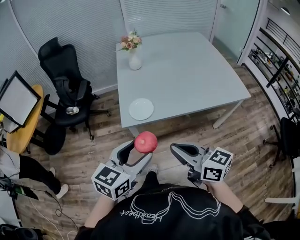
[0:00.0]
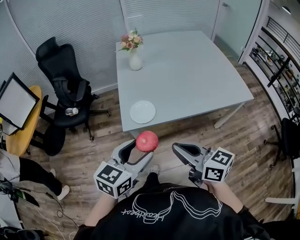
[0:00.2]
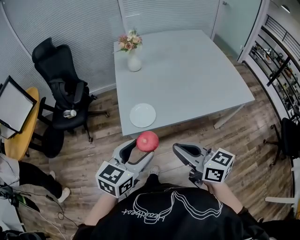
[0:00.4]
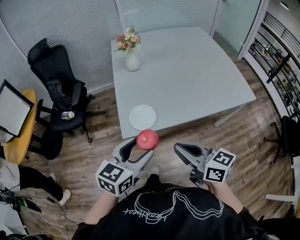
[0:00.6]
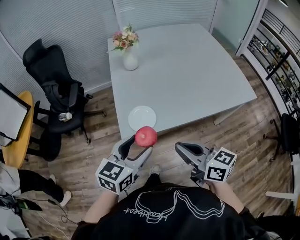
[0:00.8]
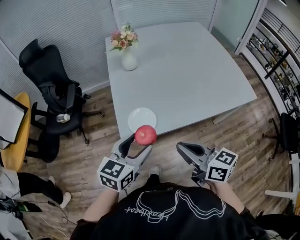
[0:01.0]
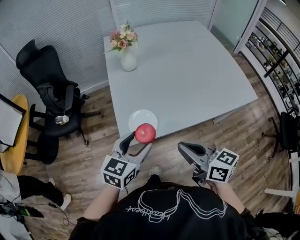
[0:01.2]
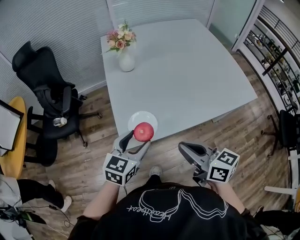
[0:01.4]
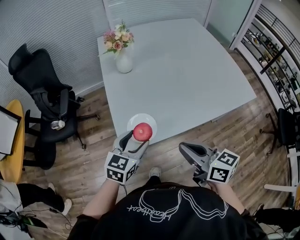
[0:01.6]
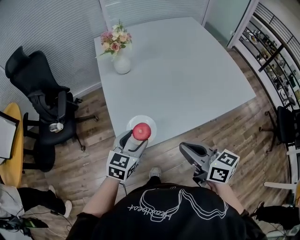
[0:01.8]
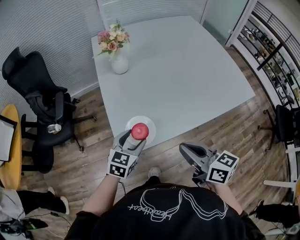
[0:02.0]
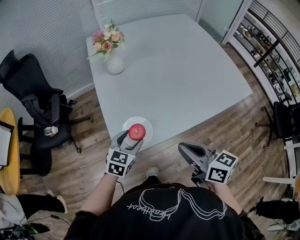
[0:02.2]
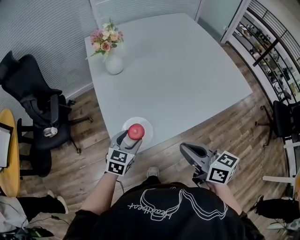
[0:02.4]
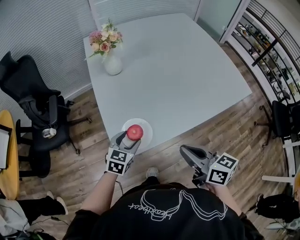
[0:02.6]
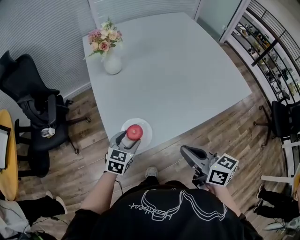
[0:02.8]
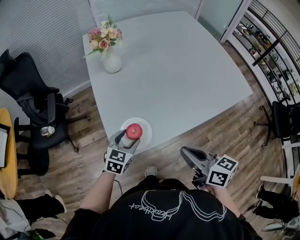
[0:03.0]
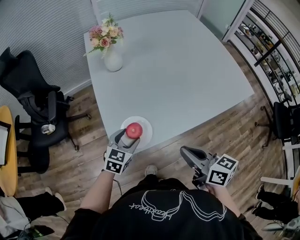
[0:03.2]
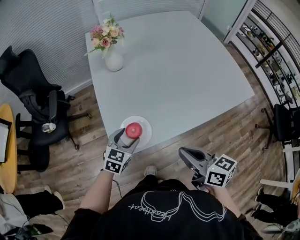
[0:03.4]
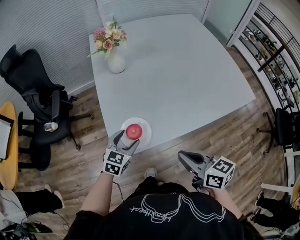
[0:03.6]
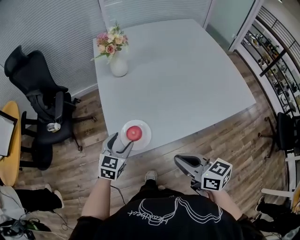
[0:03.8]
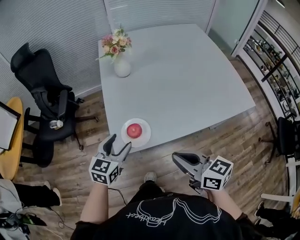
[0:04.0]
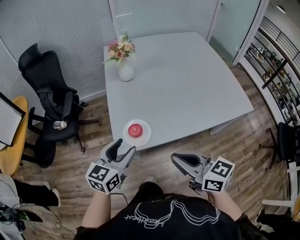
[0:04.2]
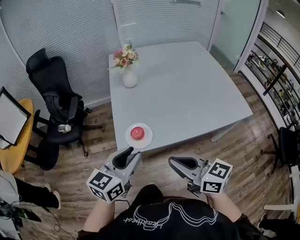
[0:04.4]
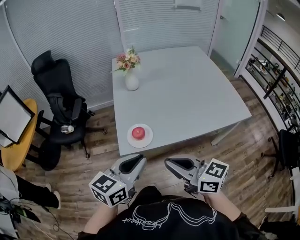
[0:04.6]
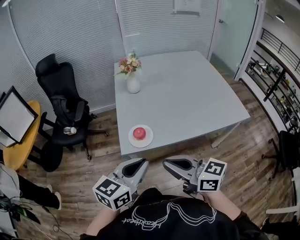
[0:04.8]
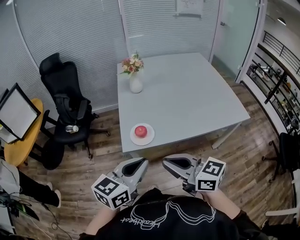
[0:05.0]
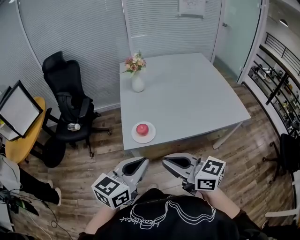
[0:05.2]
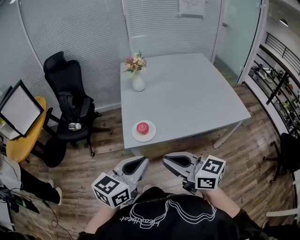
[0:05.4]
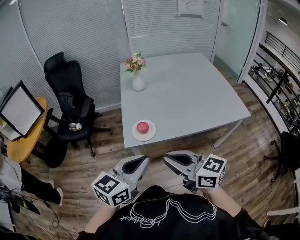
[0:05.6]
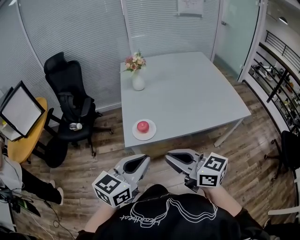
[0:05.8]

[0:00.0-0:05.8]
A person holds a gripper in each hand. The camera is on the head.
0:00.0 to 0:01.4: The left gripper goes about 25 cm forward and downward; the right gripper moves forward, roughly 15 cm.
0:01.4 to 0:02.8: The right gripper moves approximately 5 cm; the left gripper is displaced downward and forward by about 15 cm.
0:02.8 to 0:04.4: The right gripper heads upward and backward, covering about 10 cm, and changes its angle by about 30 degrees. Meanwhile the left gripper goes about 25 cm upward and backward, changes its angle by about 30 degrees, and closes up.
0:04.4 to 0:05.8: The right gripper is displaced backward by some 10 cm. The left gripper heads backward and upward, covering some 15 cm, and closes.

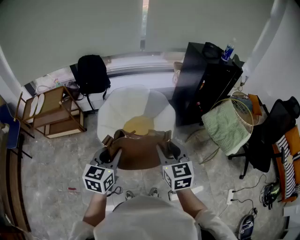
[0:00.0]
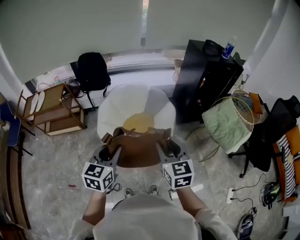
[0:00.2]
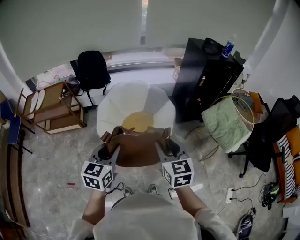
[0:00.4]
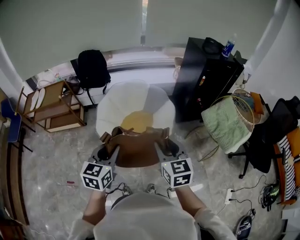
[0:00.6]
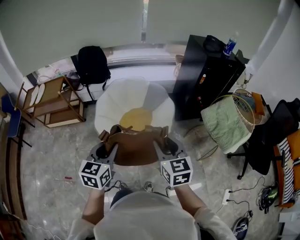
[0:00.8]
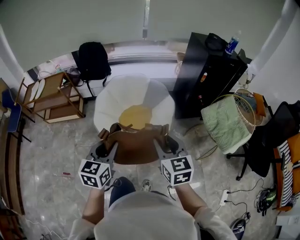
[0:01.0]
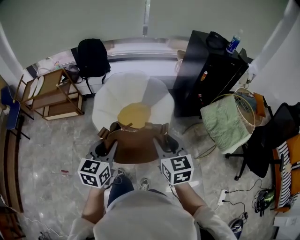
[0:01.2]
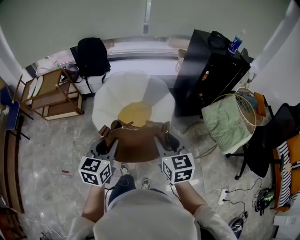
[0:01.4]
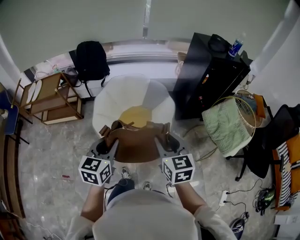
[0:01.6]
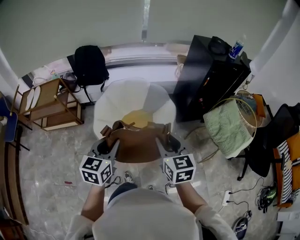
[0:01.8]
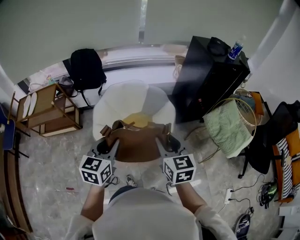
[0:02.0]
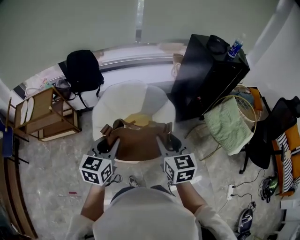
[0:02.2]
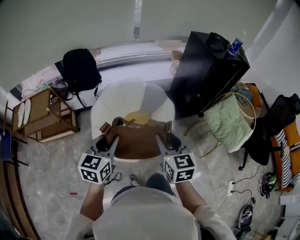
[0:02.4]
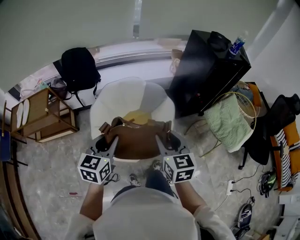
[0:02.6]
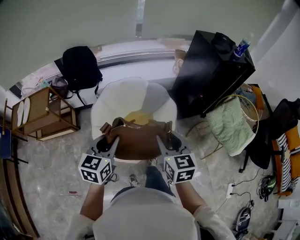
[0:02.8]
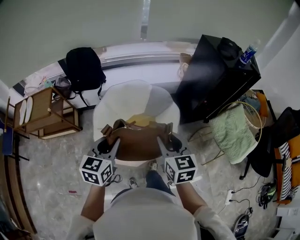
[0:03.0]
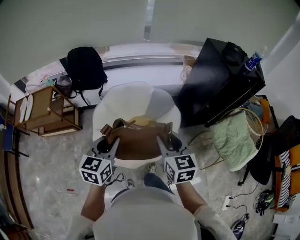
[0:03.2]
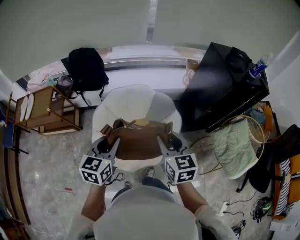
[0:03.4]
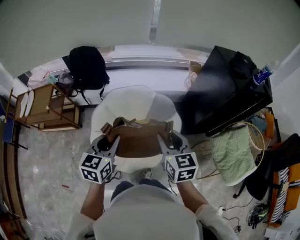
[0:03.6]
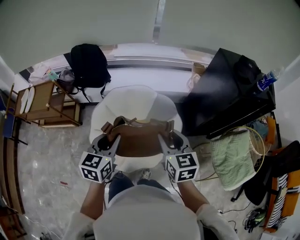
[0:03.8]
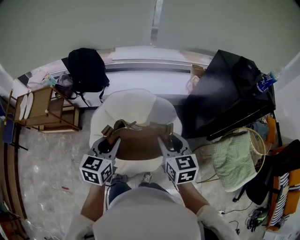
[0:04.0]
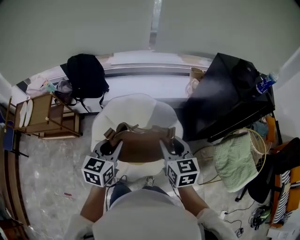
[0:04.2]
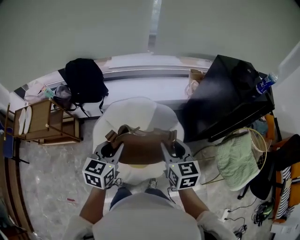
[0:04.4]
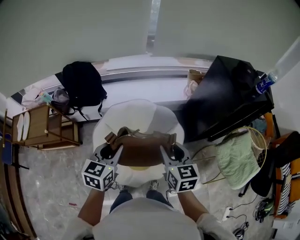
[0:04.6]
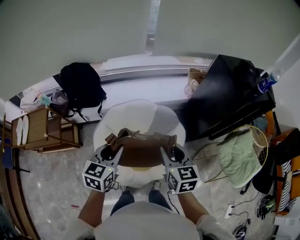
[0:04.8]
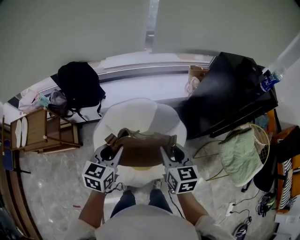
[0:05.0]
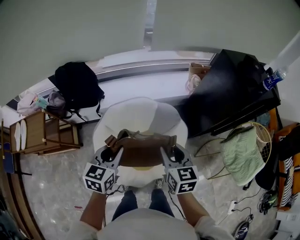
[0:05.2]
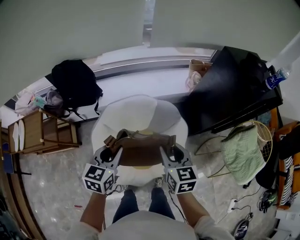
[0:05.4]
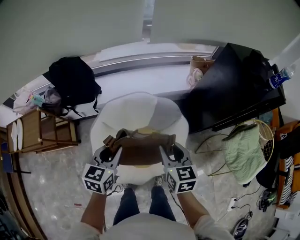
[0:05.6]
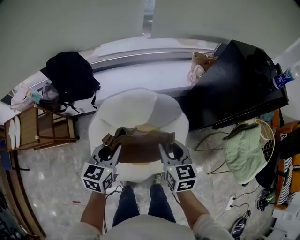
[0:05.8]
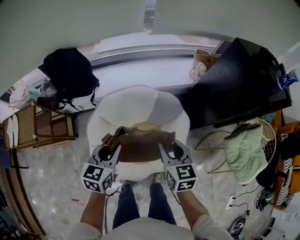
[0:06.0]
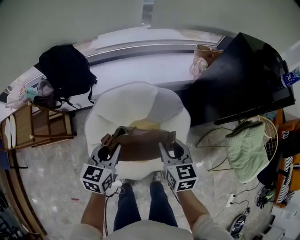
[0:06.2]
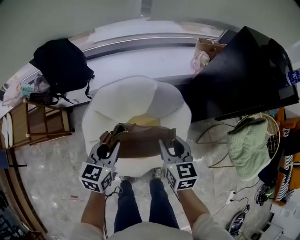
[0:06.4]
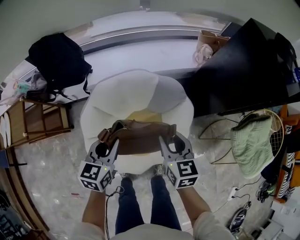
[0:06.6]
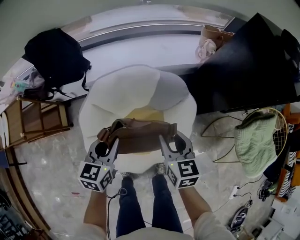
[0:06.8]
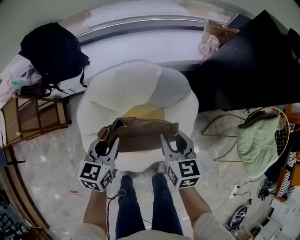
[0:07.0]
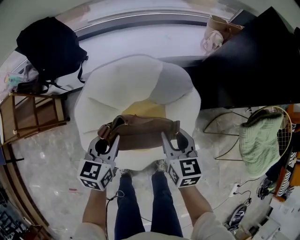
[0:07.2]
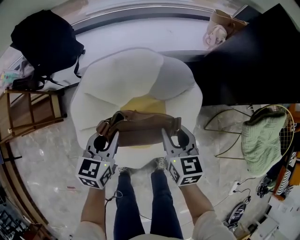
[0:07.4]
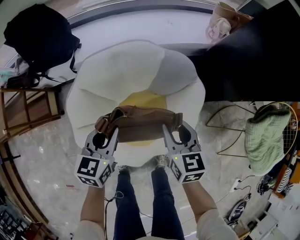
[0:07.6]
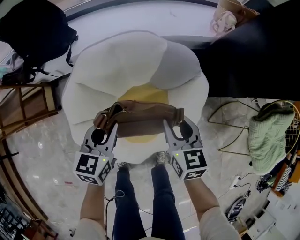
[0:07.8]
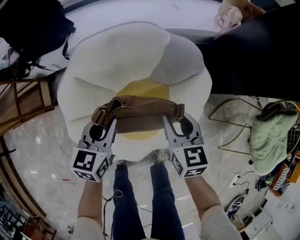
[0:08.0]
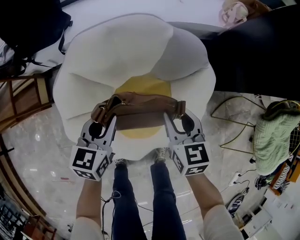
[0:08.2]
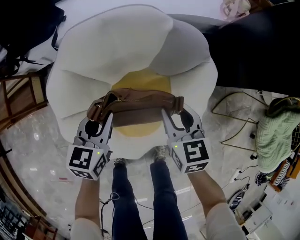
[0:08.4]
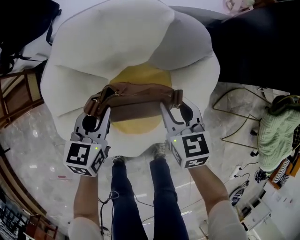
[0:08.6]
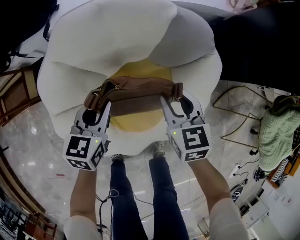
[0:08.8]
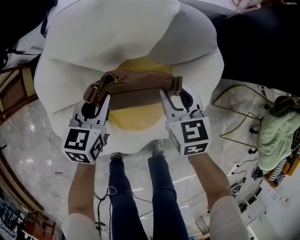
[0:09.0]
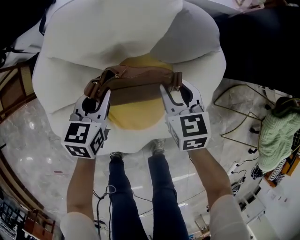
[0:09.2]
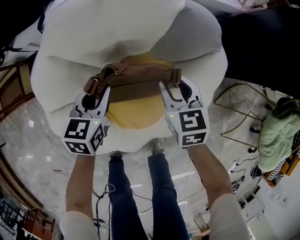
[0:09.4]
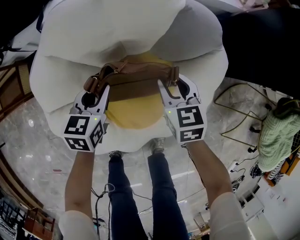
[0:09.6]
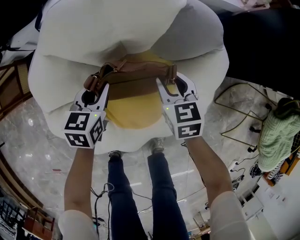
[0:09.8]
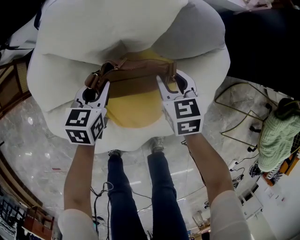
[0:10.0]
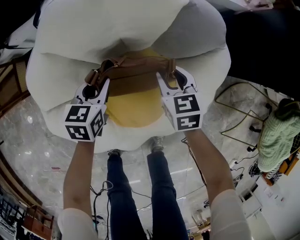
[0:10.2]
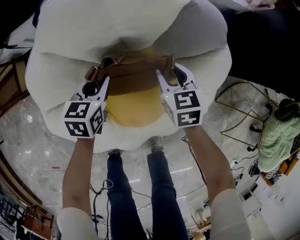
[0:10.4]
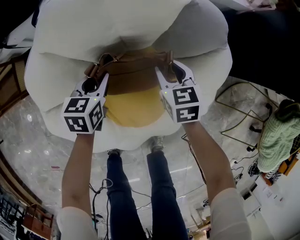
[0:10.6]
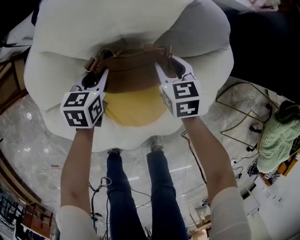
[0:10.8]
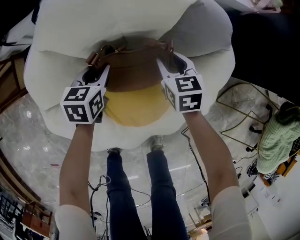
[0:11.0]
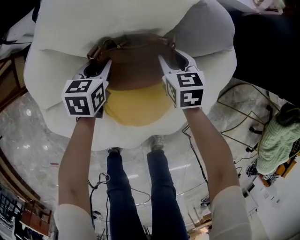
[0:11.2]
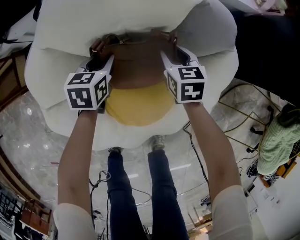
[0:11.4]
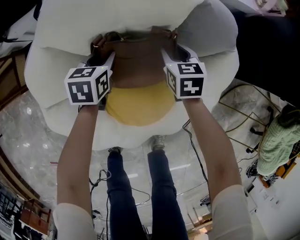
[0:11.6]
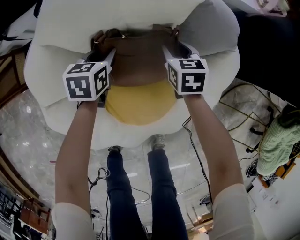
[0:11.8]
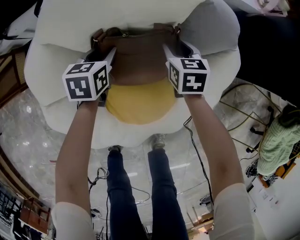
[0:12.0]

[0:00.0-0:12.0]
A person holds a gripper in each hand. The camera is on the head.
0:00.0 to 0:01.6: The left gripper ends up about 5 cm from where it was. The right gripper is displaced to the right by about 5 cm.
0:01.6 to 0:03.0: The grippers both shift forward and to the left by some 20 cm.
0:03.0 to 0:04.4: Both grippers move forward, some 15 cm.
0:04.4 to 0:06.0: The two grippers go roughly 15 cm downward and forward.
0:06.0 to 0:07.6: Both grippers travel together downward, approximately 20 cm.
0:07.6 to 0:09.0: Both grippers travel together downward, about 20 cm.
0:09.0 to 0:10.4: Both grippers travel together downward, roughly 10 cm.
0:10.4 to 0:12.0: The right gripper is displaced forward and downward by some 10 cm, while the left gripper shifts roughly 5 cm forward.

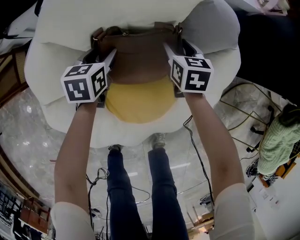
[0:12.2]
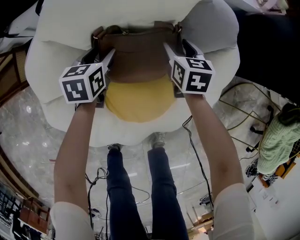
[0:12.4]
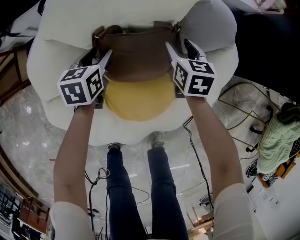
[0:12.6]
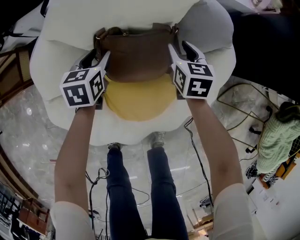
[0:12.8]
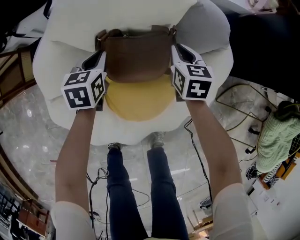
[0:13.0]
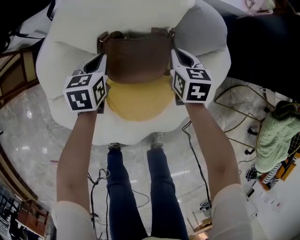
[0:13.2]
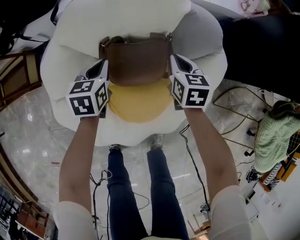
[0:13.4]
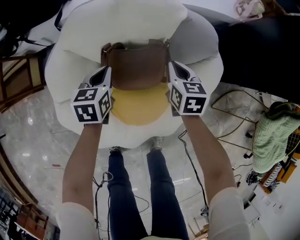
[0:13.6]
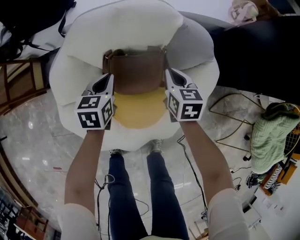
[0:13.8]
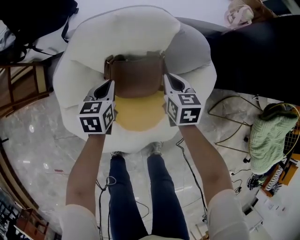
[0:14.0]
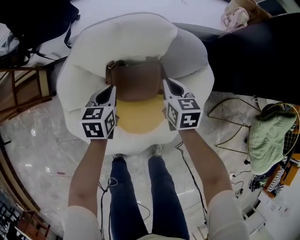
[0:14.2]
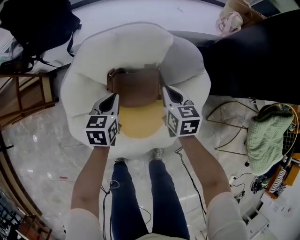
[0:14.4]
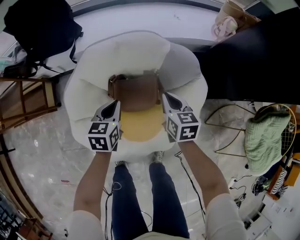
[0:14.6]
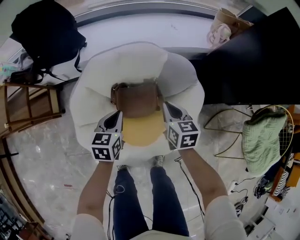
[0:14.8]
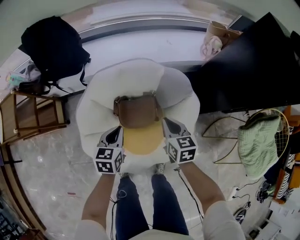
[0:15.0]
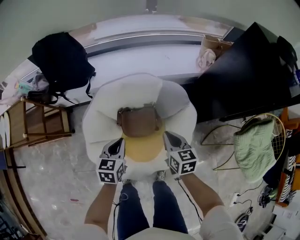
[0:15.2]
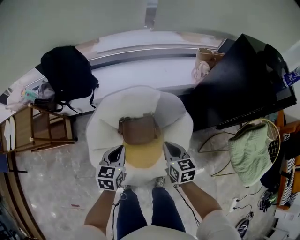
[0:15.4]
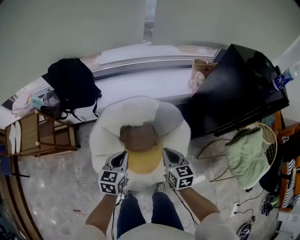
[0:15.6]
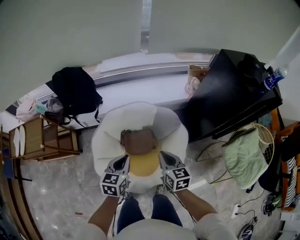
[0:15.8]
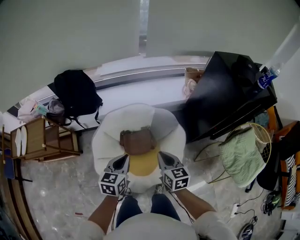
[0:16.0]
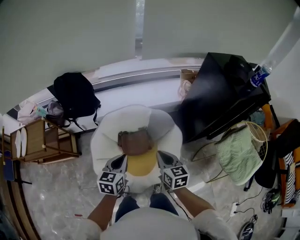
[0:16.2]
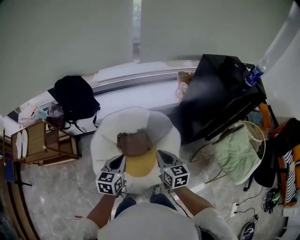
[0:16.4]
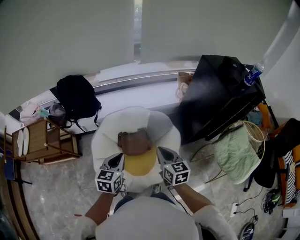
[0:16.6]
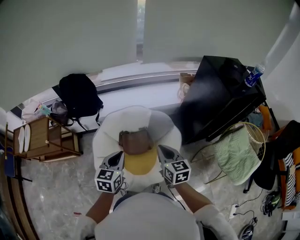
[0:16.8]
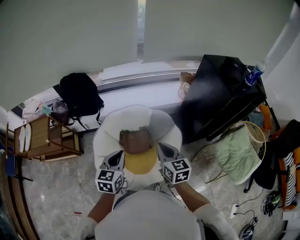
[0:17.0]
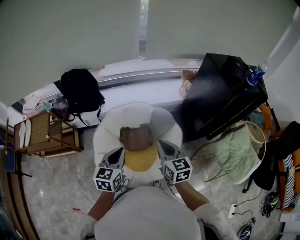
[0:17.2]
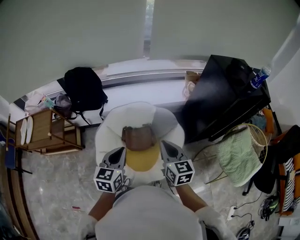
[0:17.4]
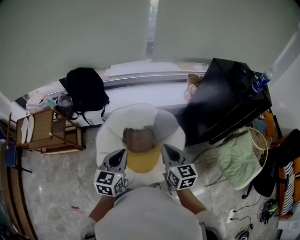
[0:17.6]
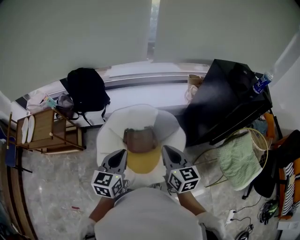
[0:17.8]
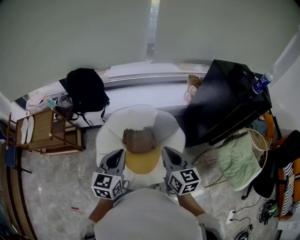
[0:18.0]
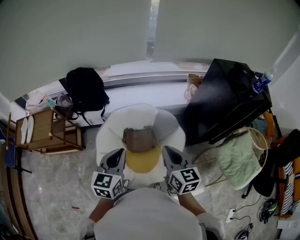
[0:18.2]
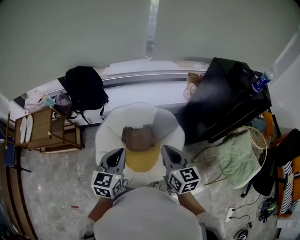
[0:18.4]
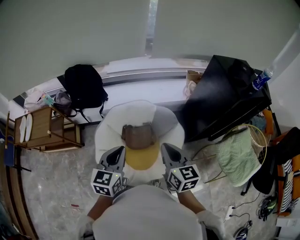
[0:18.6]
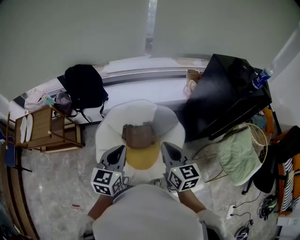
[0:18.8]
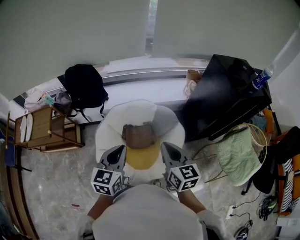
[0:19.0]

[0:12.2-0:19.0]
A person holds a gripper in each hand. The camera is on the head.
0:12.2 to 0:13.6: The grippers both shift upward by some 10 cm. The left gripper closes; the right gripper closes up.
0:13.6 to 0:15.0: Both grippers travel together upward and backward, approximately 20 cm.
0:15.0 to 0:16.2: The right gripper moves upward and backward, roughly 25 cm; the left gripper goes approximately 25 cm upward.
0:16.2 to 0:17.6: Both grippers travel together upward, approximately 10 cm.
0:17.6 to 0:19.0: The grippers make only small movements.
